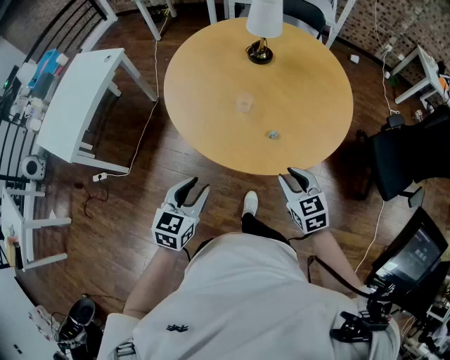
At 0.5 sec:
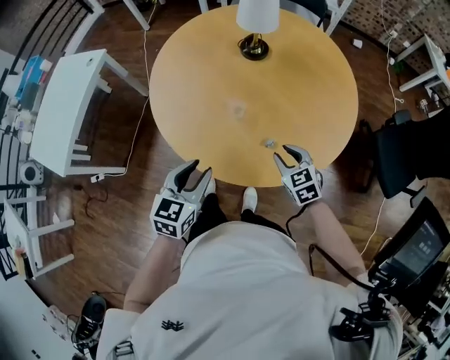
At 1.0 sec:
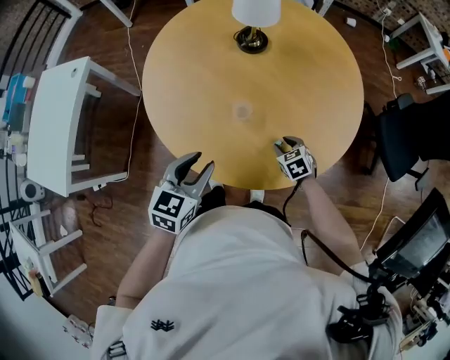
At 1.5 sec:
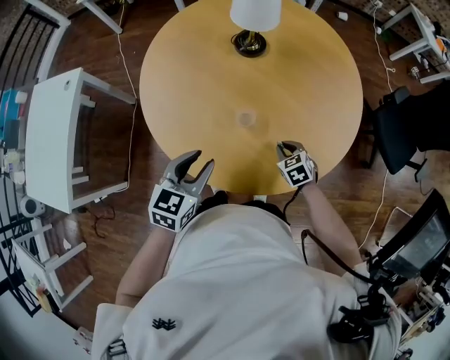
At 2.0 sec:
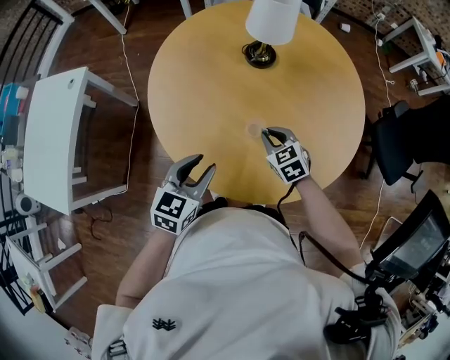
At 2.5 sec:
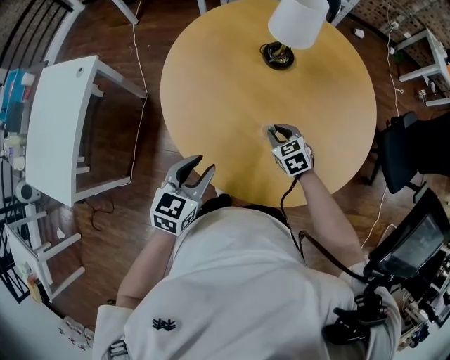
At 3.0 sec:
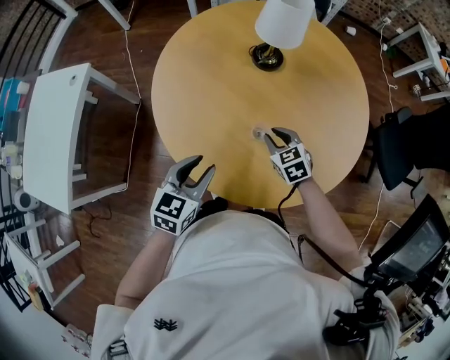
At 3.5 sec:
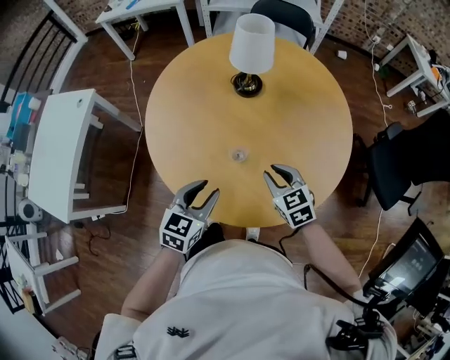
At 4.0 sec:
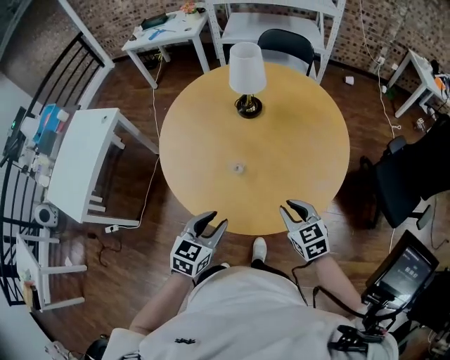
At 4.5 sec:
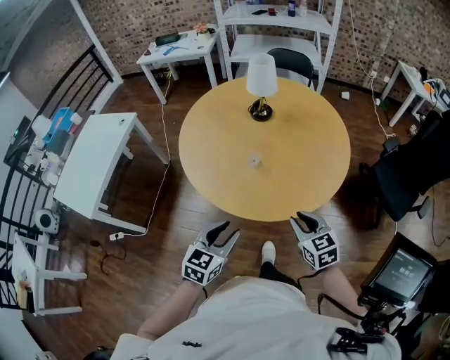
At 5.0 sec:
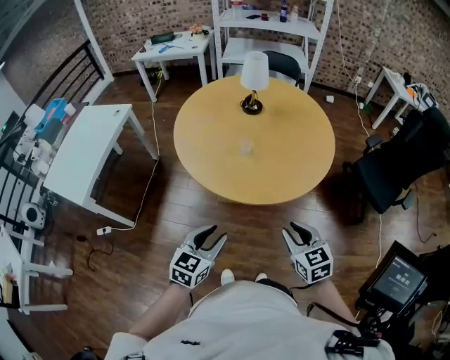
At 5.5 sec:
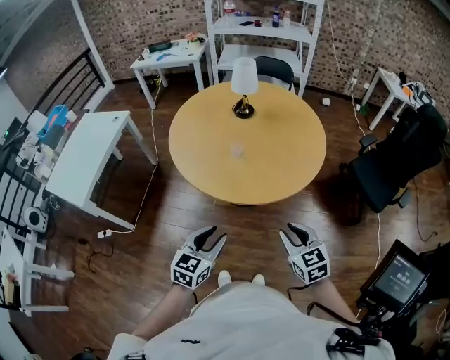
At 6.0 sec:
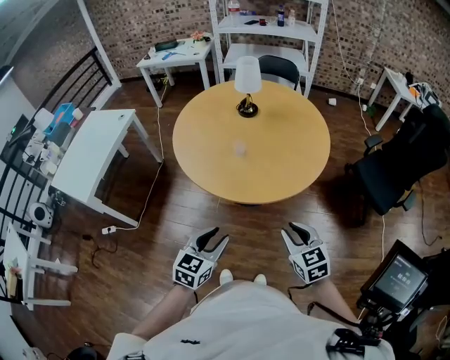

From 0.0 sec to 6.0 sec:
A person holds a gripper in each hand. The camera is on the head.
From 0.0 sec to 2.0 sec: The left gripper heads forward, covering some 25 cm, while the right gripper moves forward and to the left, some 30 cm.
From 2.0 sec to 4.0 sec: The left gripper travels to the right and backward by roughly 20 cm. The right gripper shifts roughly 25 cm to the right, backward and upward.
From 4.0 sec to 6.0 sec: The two grippers go roughly 30 cm backward.

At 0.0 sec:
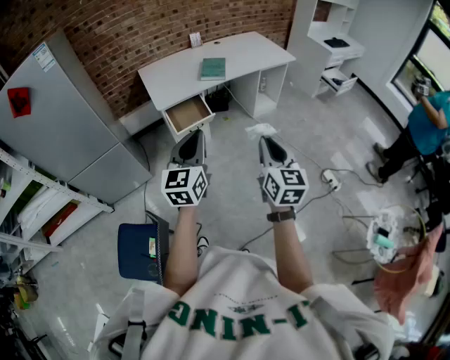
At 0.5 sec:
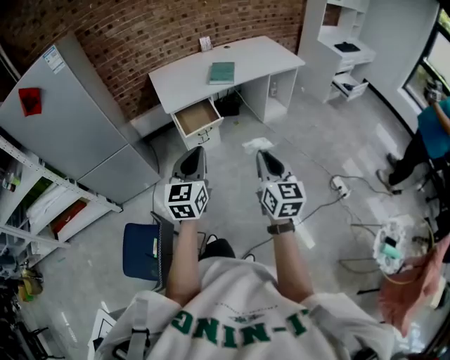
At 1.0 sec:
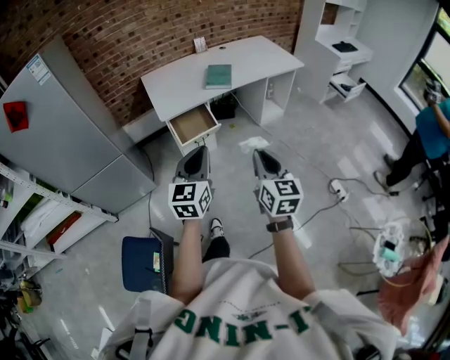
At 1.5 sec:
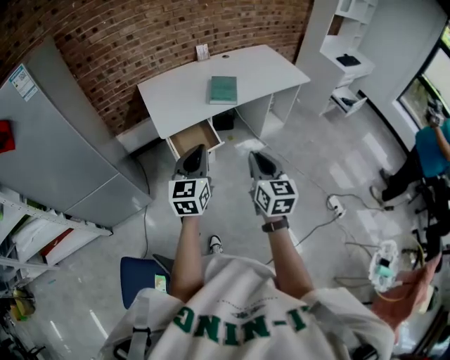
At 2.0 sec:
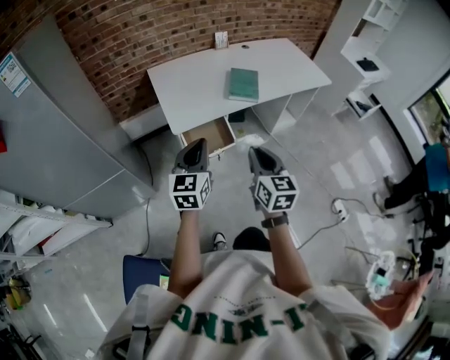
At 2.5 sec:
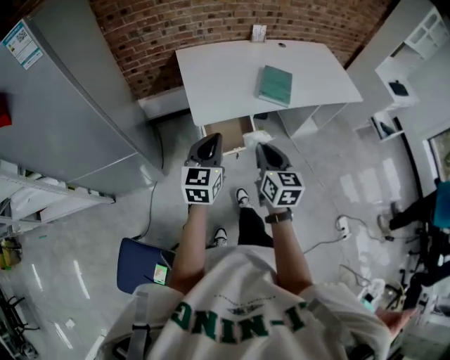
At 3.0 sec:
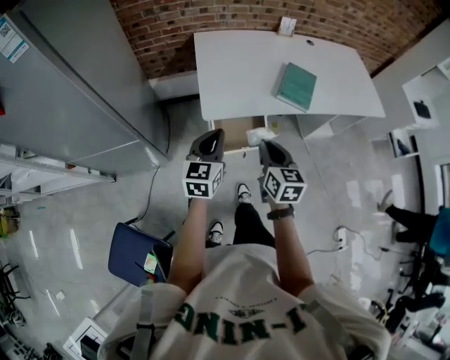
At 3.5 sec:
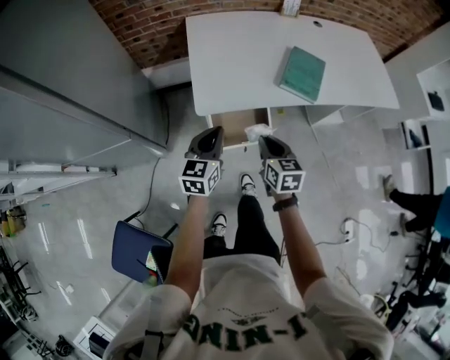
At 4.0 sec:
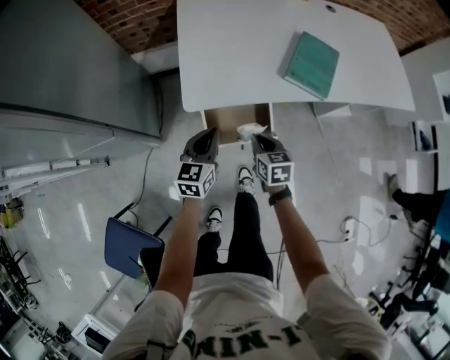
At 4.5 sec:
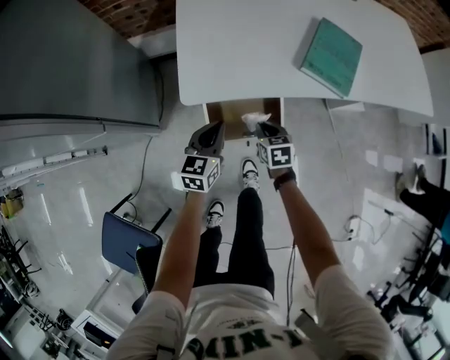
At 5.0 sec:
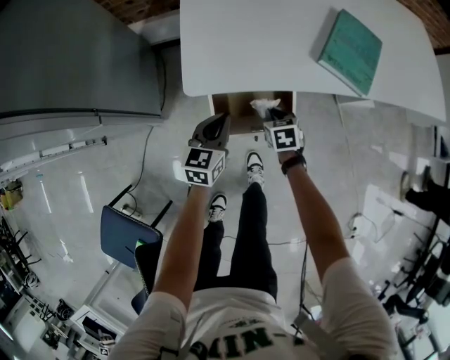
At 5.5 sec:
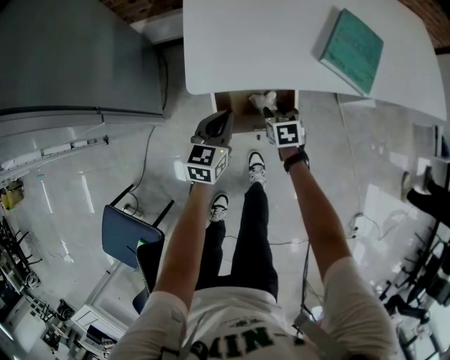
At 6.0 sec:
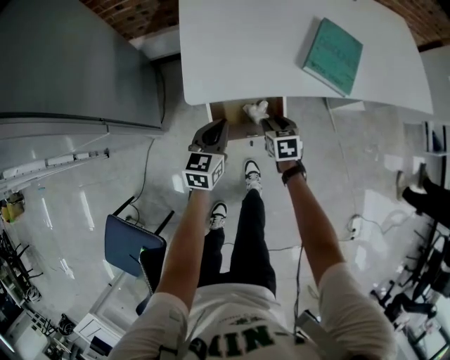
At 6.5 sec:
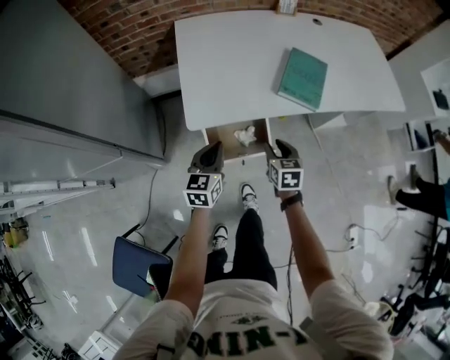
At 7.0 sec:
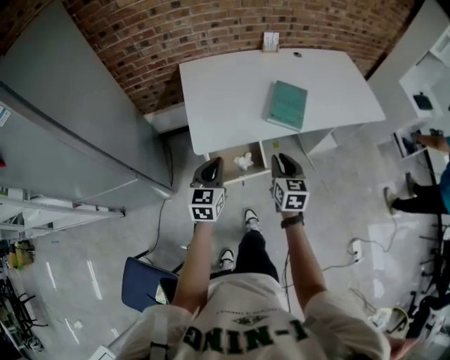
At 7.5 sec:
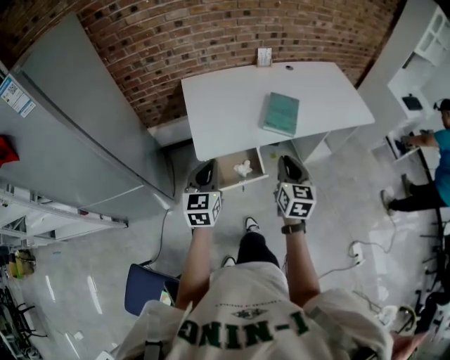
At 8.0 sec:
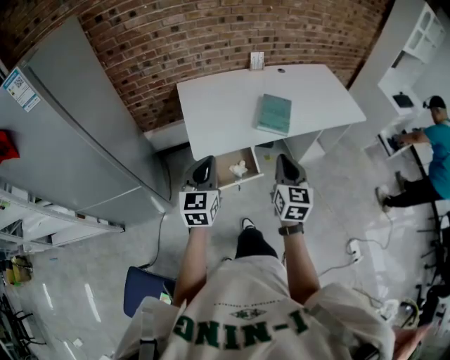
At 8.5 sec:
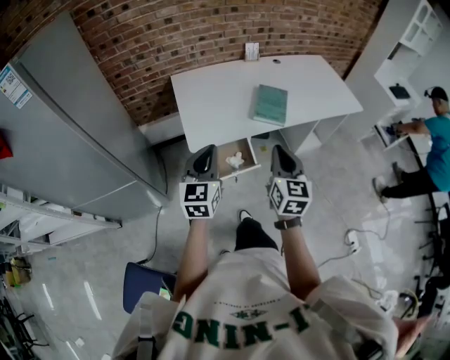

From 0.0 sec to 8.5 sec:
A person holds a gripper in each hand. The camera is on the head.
From 0.0 sec to 2.0 sec: Both grippers travel together forward and to the left, approximately 35 cm.
From 2.0 sec to 4.0 sec: Both grippers travel together downward and forward, approximately 35 cm. The right gripper rotates approximately 40 degrees.
From 4.0 sec to 6.5 sec: The left gripper goes downward and returns, about 10 cm each way; the right gripper is displaced to the right by approximately 5 cm, moves about 15 cm downward and comes back, and opens.
From 6.5 sec to 8.5 sec: The left gripper is displaced upward by roughly 25 cm, while the right gripper is displaced upward and backward by about 35 cm, tips its fingers upward by about 30 degrees, and closes its fingers.

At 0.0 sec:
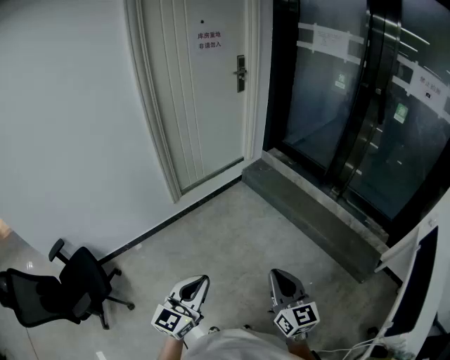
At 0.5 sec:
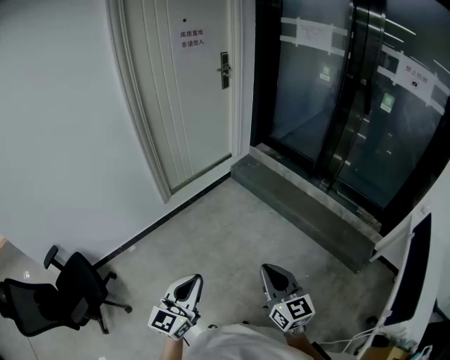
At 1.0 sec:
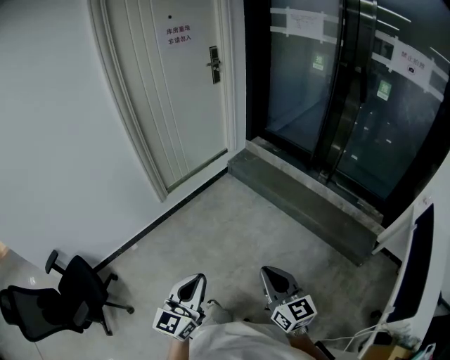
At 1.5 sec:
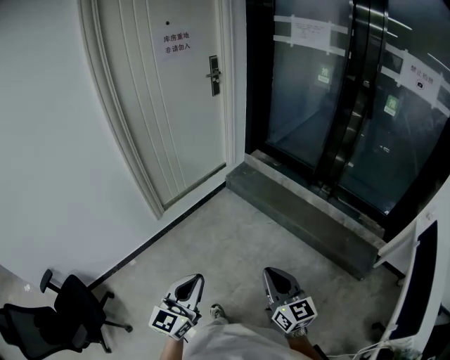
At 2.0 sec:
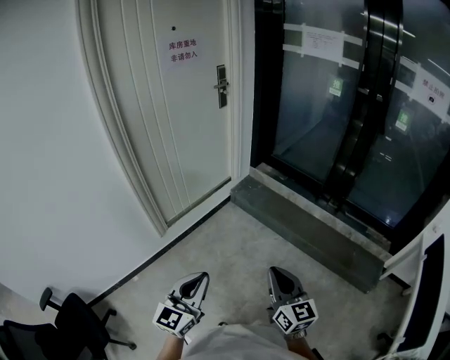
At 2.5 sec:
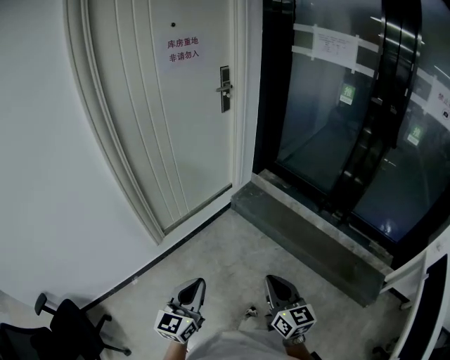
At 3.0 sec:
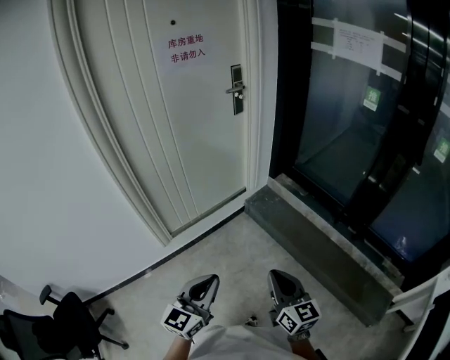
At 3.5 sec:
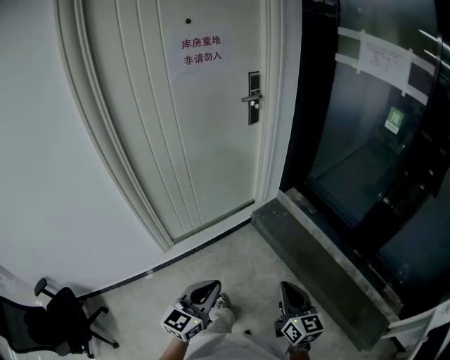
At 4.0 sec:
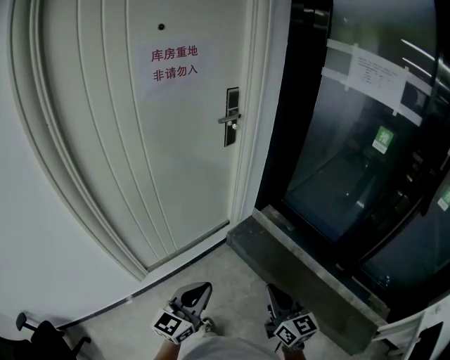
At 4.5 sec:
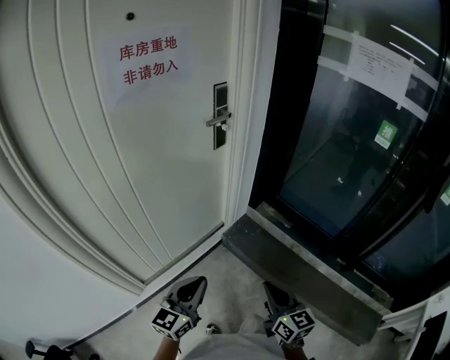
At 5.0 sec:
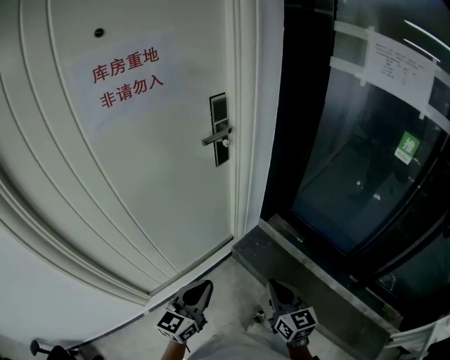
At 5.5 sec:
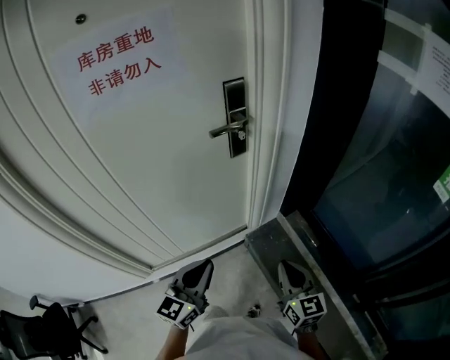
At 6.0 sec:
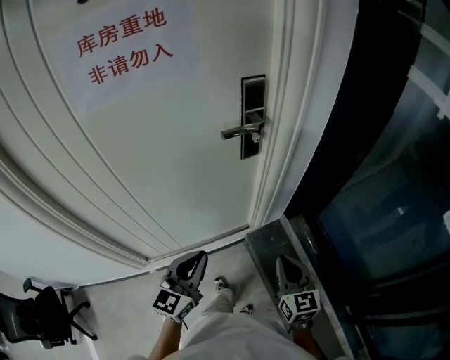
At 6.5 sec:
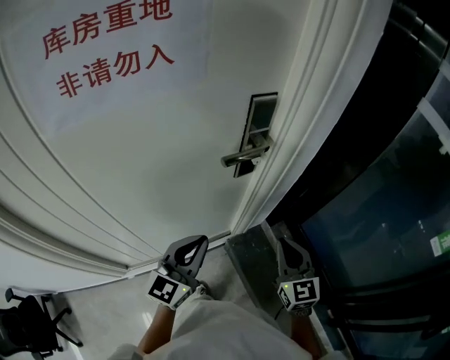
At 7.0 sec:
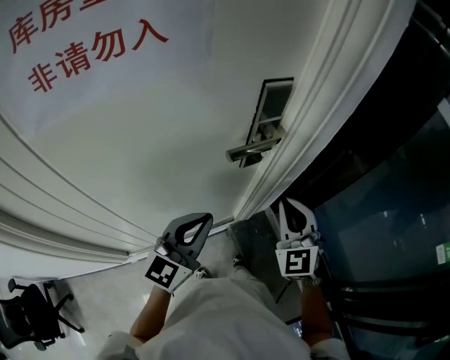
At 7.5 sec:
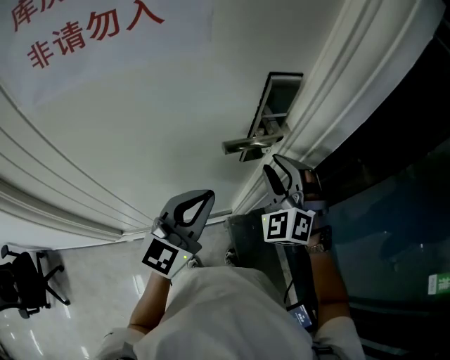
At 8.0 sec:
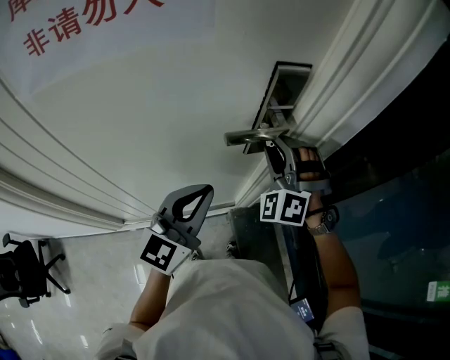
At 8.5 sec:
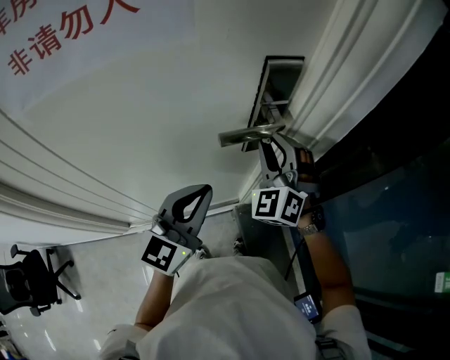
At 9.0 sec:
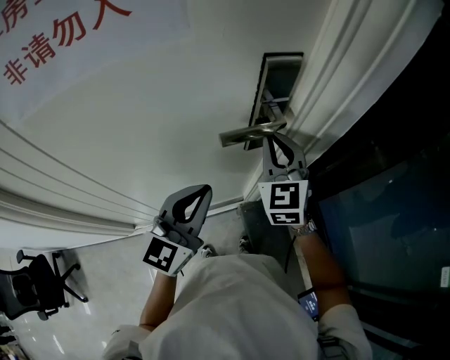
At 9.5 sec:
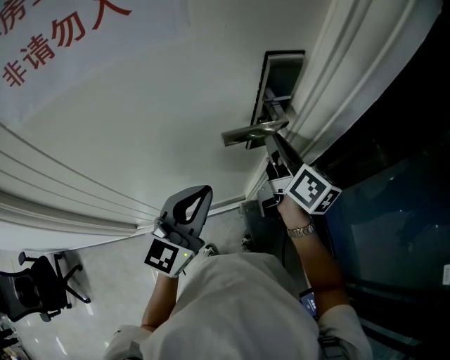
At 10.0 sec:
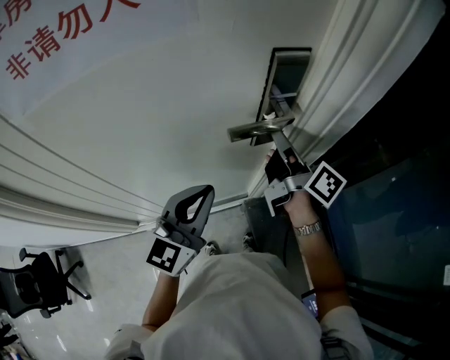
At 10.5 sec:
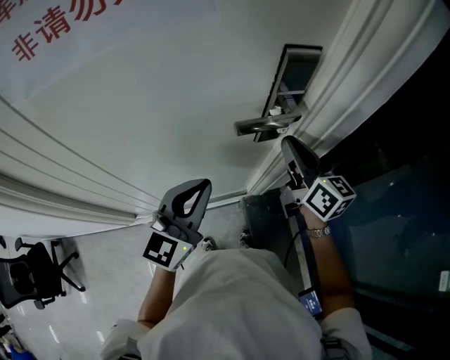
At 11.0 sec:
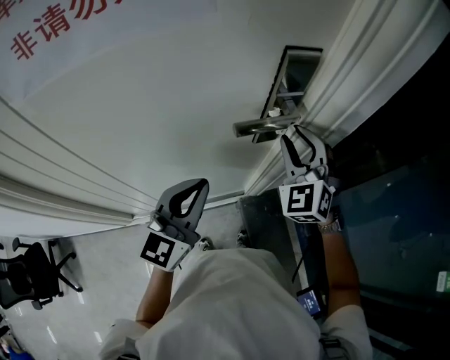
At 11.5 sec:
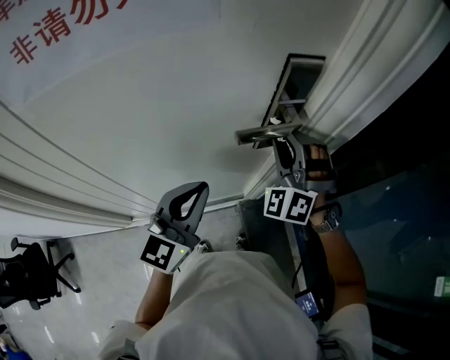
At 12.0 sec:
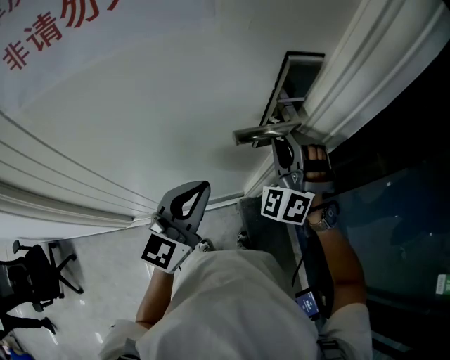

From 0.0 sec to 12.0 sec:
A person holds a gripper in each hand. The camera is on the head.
From 0.0 sec to 2.0 sec: The two grippers go about 25 cm forward.
From 2.0 sec to 4.0 sec: The two grippers travel together, forward, roughly 40 cm.
From 4.0 sec to 6.0 sec: The two grippers go roughly 40 cm forward. The left gripper rotates some 20 degrees.
From 6.0 sec to 8.0 sec: The left gripper shifts approximately 20 cm forward. Meanwhile the right gripper shifts about 35 cm forward, twists approximately 80 degrees counterclockwise, seen from behind, and opens.
From 8.0 sec to 10.0 sec: The right gripper rolls clockwise, seen from behind, by some 140 degrees, and closes.
From 10.0 sec to 12.0 sec: The right gripper twists roughly 130 degrees counterclockwise, seen from behind.
